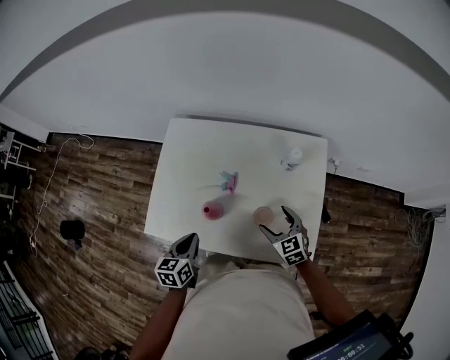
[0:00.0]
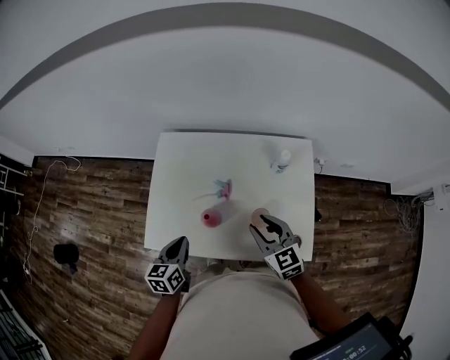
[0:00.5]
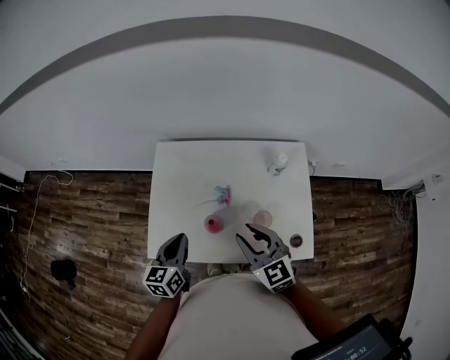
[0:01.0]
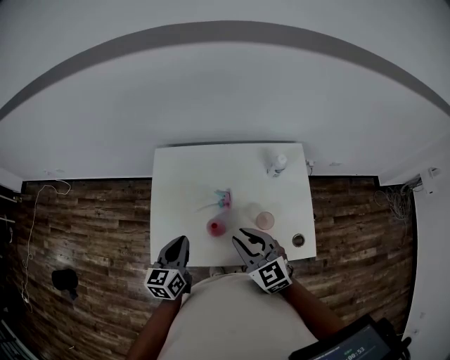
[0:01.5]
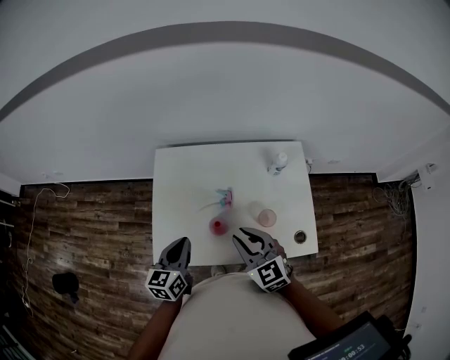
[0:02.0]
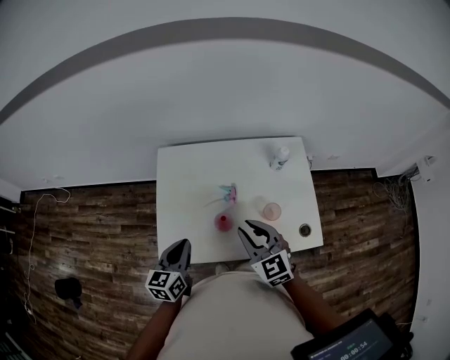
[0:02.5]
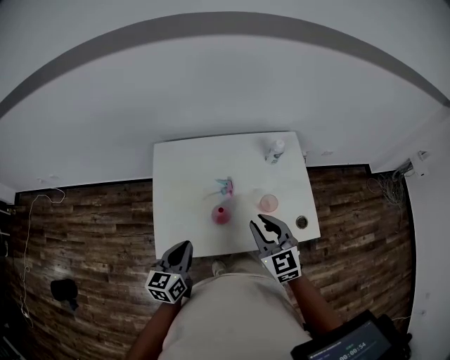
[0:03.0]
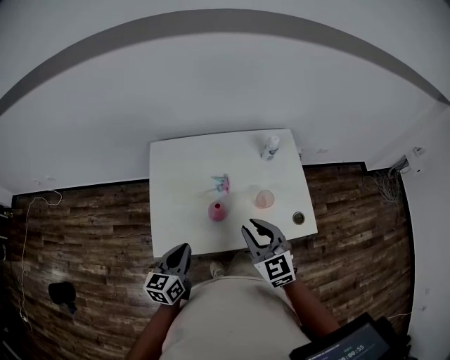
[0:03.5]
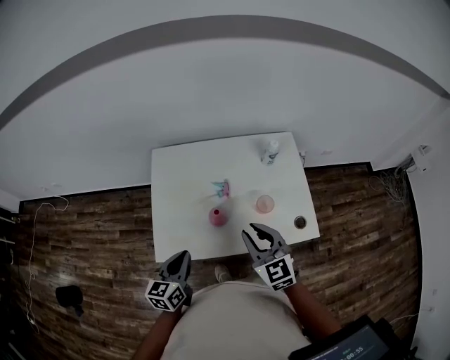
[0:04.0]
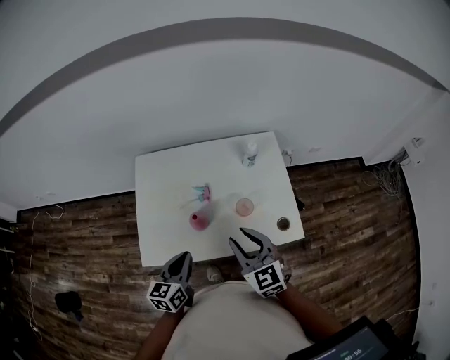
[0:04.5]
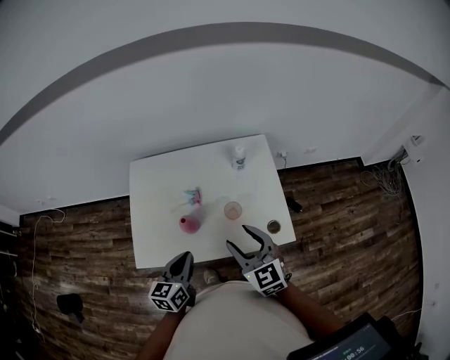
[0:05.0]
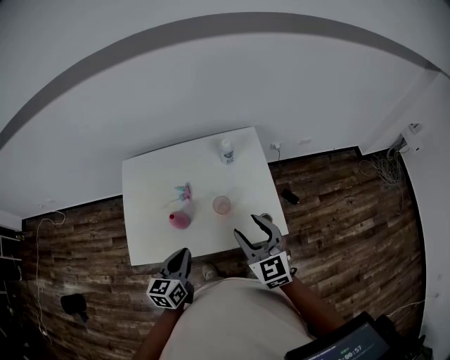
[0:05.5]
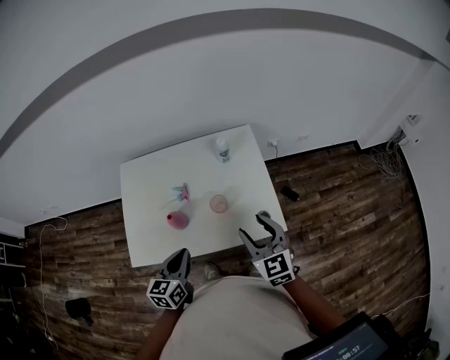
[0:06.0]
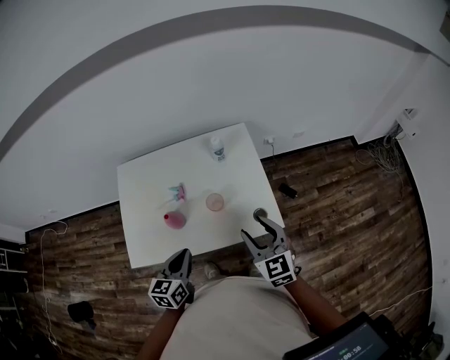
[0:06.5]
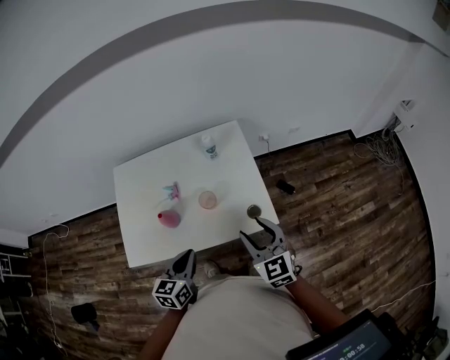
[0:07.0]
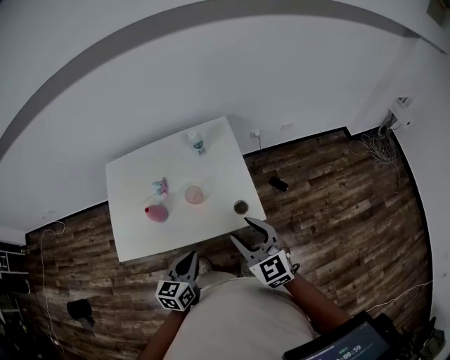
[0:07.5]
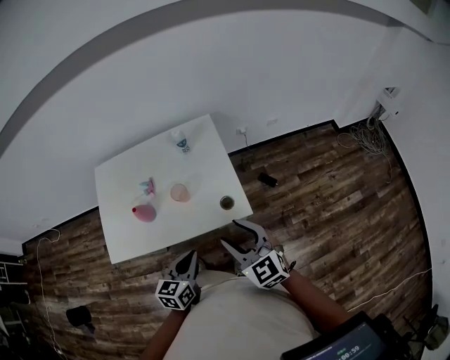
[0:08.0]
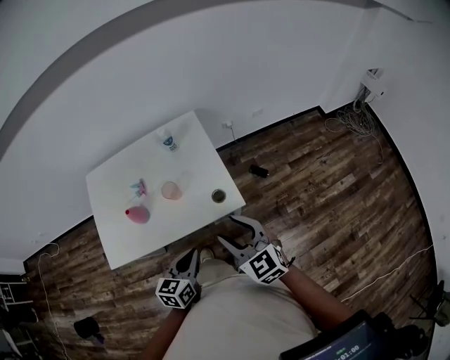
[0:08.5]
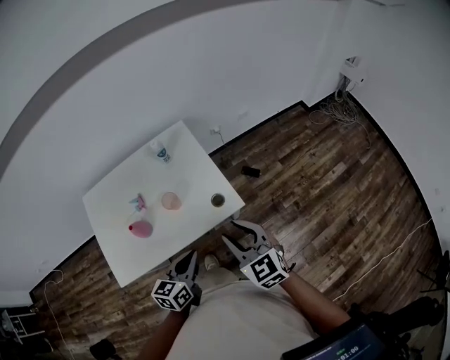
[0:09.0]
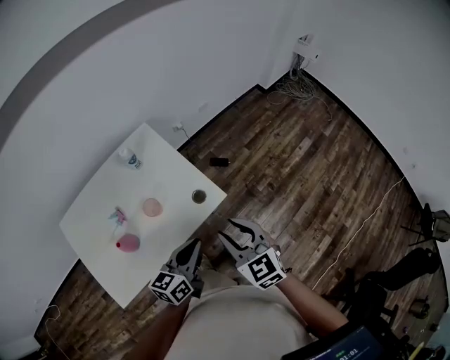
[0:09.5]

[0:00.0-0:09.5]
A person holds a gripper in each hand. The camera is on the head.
0:00.0 to 0:02.0: The right gripper goes roughly 25 cm upward and to the left, and closes up. The left gripper goes some 15 cm upward and to the left, and rotates about 20 degrees.
0:02.0 to 0:04.0: The right gripper shifts roughly 5 cm backward. Meanwhile the left gripper moves backward, approximately 10 cm.
0:04.0 to 0:05.5: The grippers both shift to the right by roughly 20 cm.
0:05.5 to 0:07.5: The two grippers go roughly 15 cm to the right and backward.
0:07.5 to 0:09.5: The right gripper changes place by approximately 5 cm, and swivels about 30 degrees. Meanwhile the left gripper ends up some 10 cm from where it was, and turns by some 40 degrees.

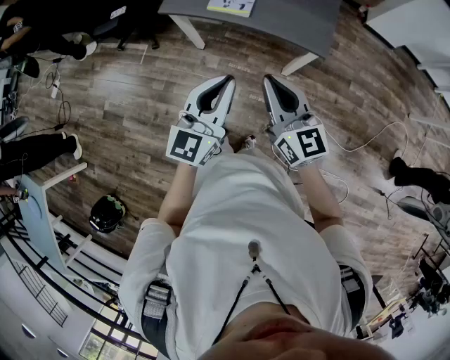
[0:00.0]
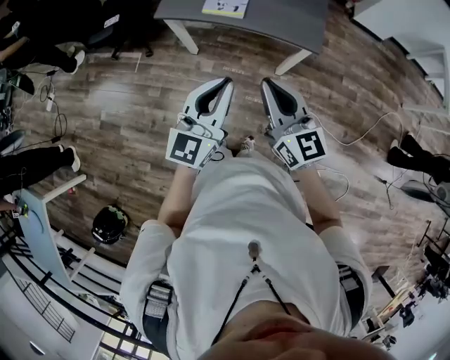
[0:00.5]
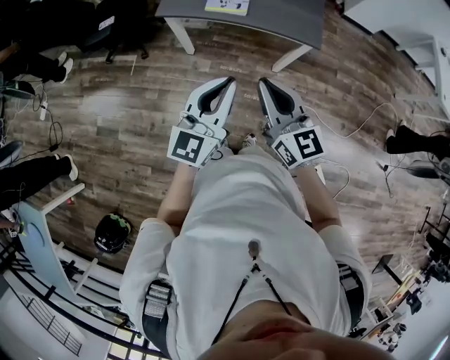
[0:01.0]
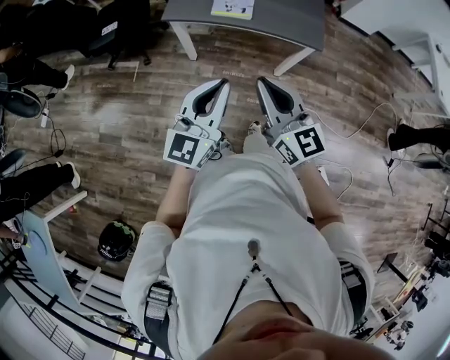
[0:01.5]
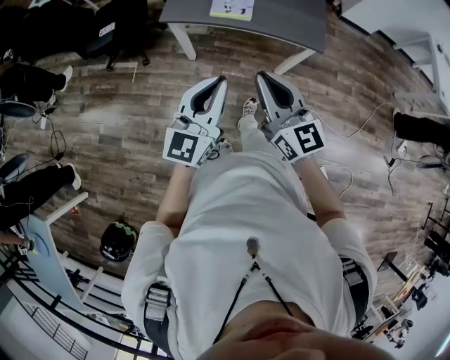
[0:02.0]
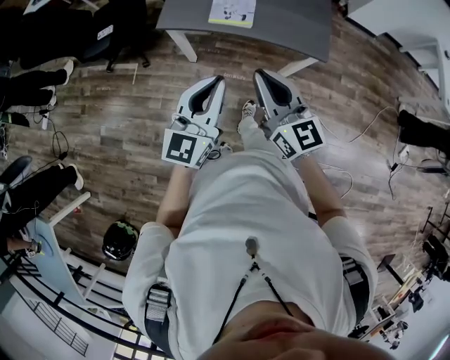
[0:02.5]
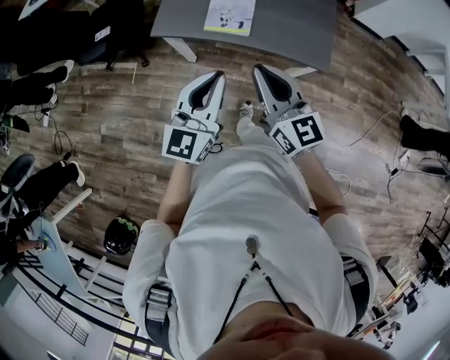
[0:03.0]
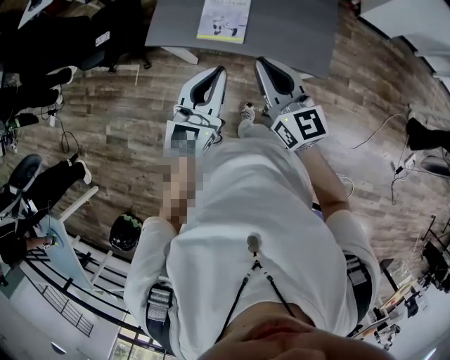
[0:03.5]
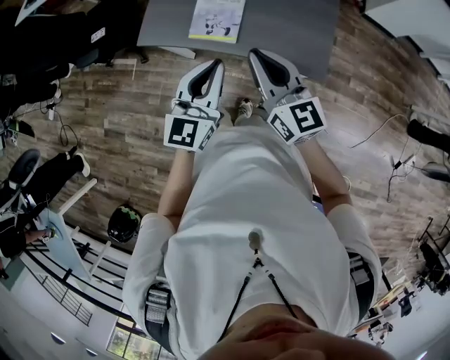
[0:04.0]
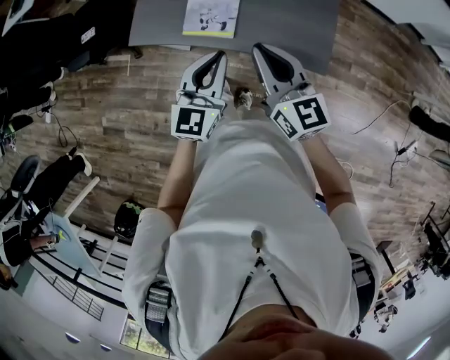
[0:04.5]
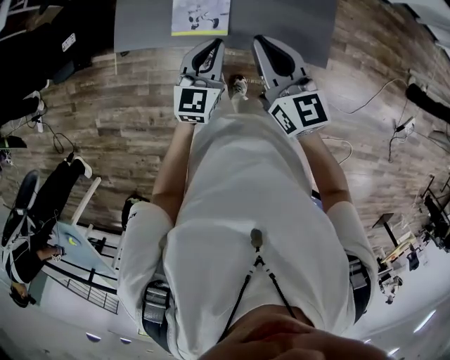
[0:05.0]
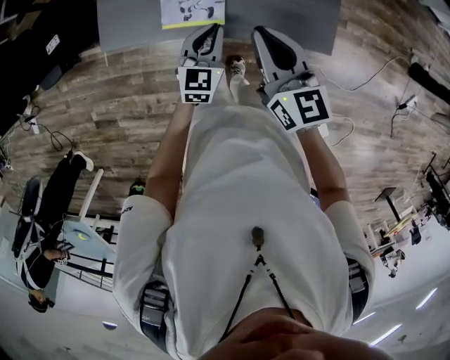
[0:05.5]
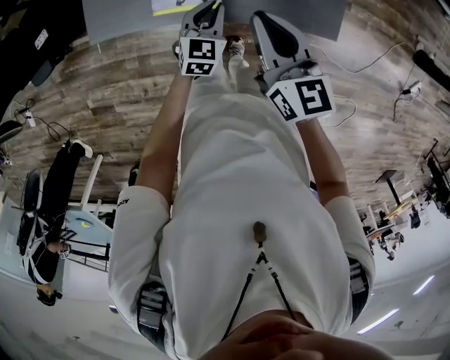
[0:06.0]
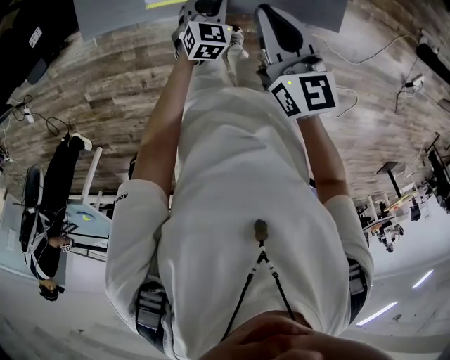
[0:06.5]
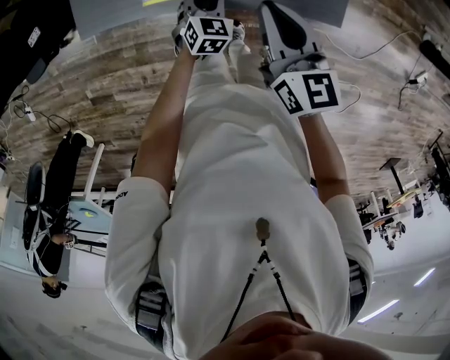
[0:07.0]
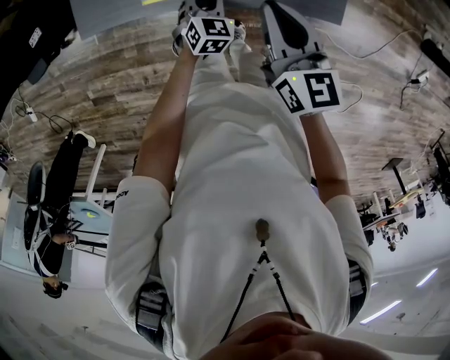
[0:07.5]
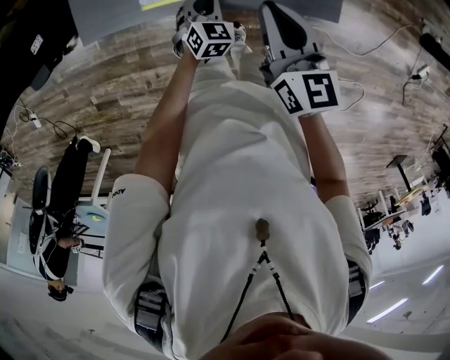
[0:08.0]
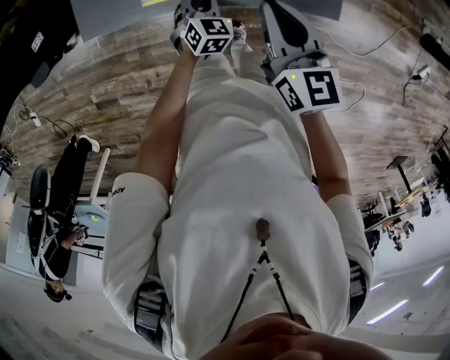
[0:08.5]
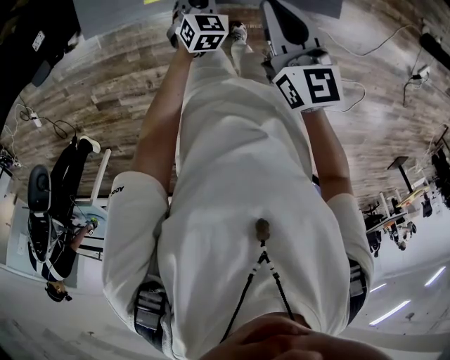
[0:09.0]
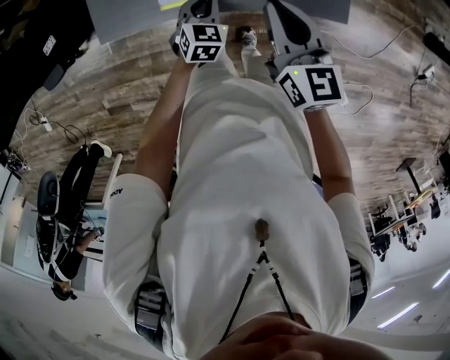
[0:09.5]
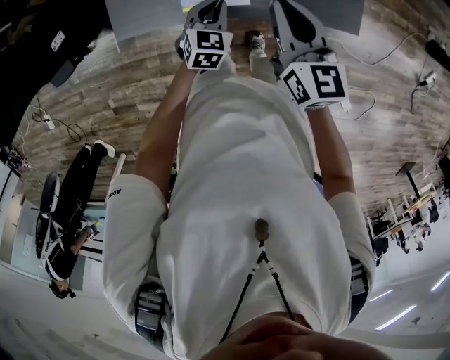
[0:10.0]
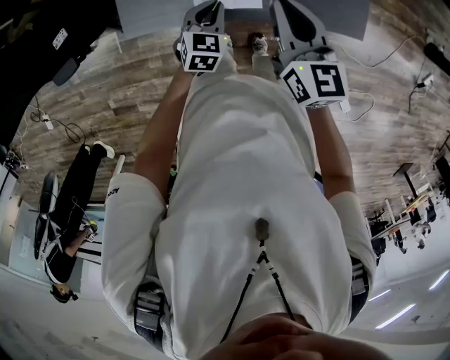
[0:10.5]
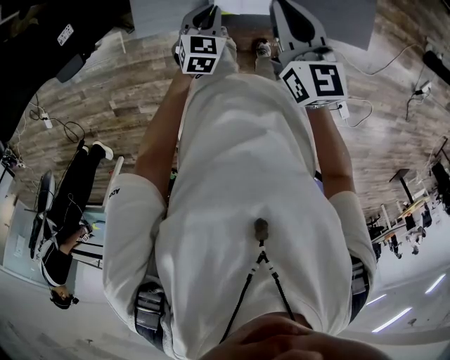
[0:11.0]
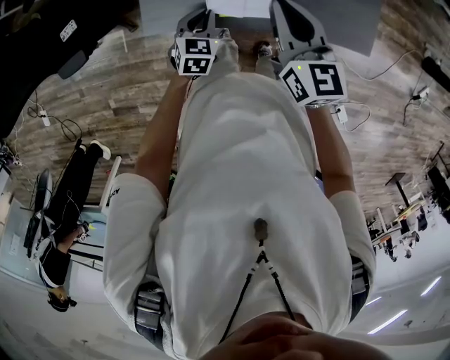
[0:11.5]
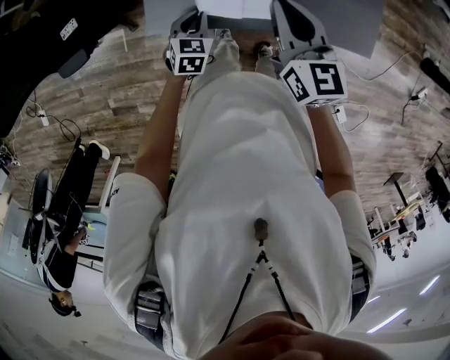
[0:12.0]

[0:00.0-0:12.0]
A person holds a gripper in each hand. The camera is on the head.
0:00.0 to 0:02.0: Both grippers move to the left, some 15 cm.
0:02.0 to 0:04.0: The pair of grippers is taken forward and to the right, some 40 cm.
0:04.0 to 0:06.0: The left gripper shifts some 40 cm downward and forward, and rotates approximately 30 degrees. Meanwhile the right gripper is displaced downward and forward by approximately 25 cm, and swivels roughly 20 degrees.
0:06.0 to 0:08.0: The left gripper is displaced downward by about 5 cm; the right gripper shifts by roughly 5 cm.
0:08.0 to 0:10.0: The right gripper moves to the left, approximately 10 cm. The left gripper moves to the left and upward, about 15 cm.
0:10.0 to 0:12.0: The two grippers go some 20 cm to the left.

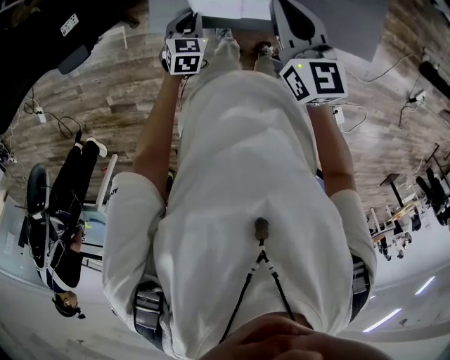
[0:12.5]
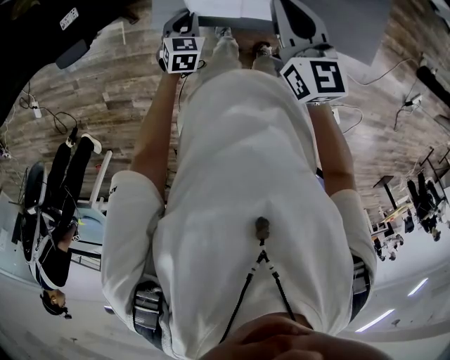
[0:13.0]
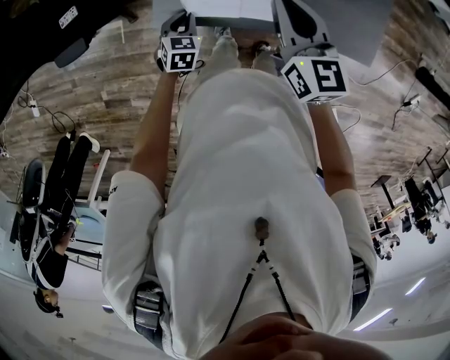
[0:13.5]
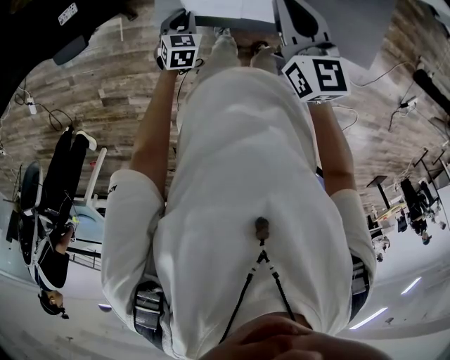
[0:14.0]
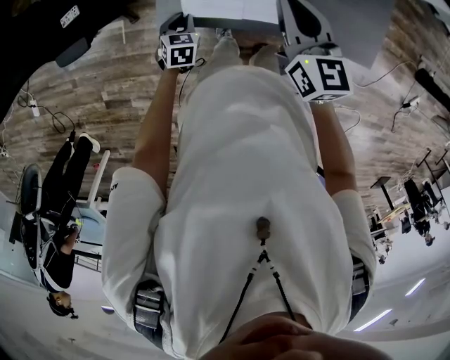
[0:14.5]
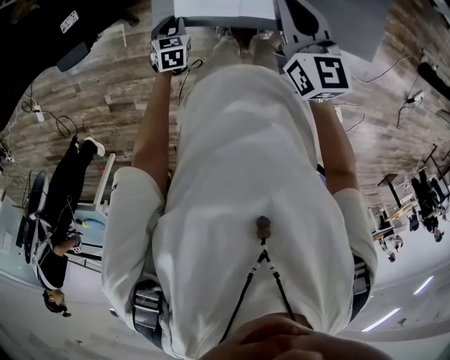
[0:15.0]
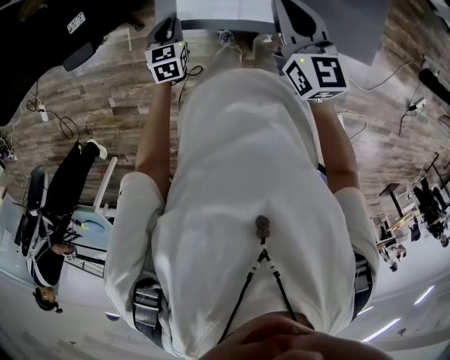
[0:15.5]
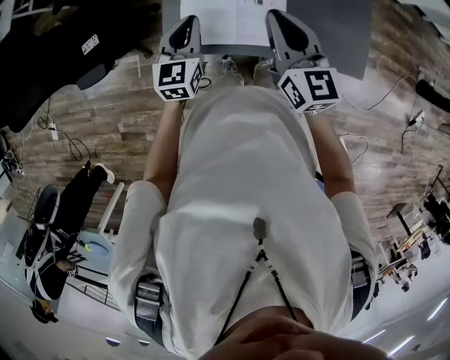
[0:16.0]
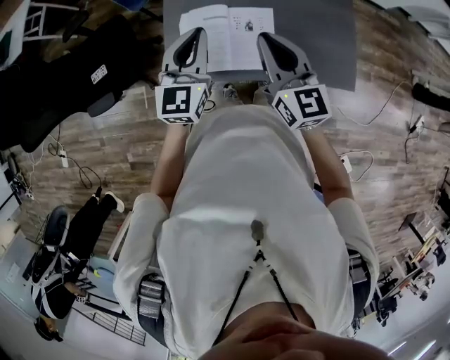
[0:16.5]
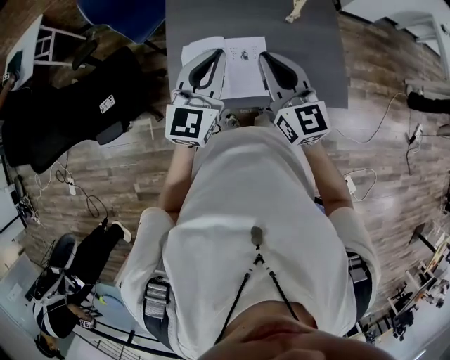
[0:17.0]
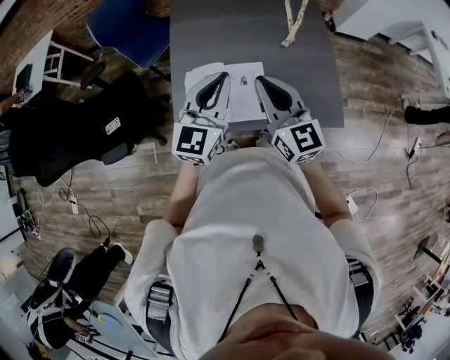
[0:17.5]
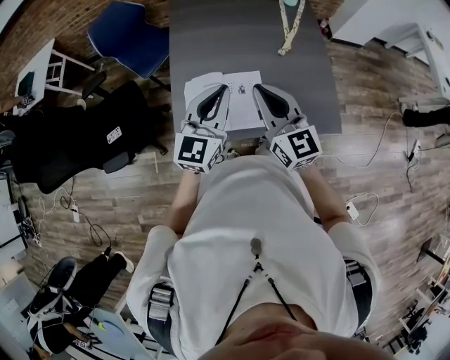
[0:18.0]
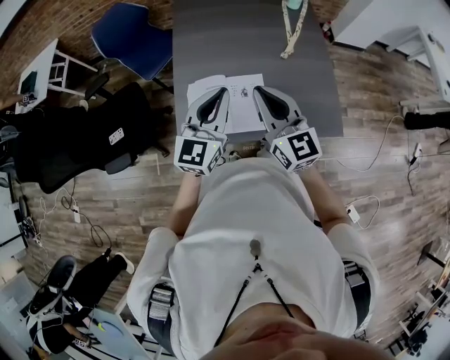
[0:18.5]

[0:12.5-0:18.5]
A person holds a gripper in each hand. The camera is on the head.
0:12.5 to 0:14.5: The left gripper moves to the left, about 5 cm.
0:14.5 to 0:16.5: The left gripper heads upward, covering roughly 40 cm, and angles its fingers upward, by about 50 degrees. Meanwhile the right gripper goes some 15 cm upward and backward.
0:16.5 to 0:18.5: The right gripper moves upward, roughly 10 cm; the left gripper heads upward and to the right, covering approximately 15 cm.
